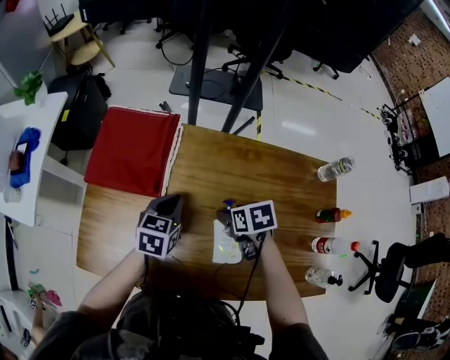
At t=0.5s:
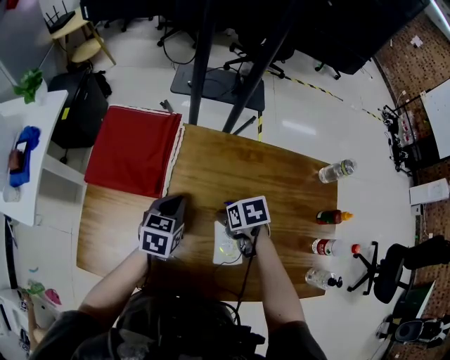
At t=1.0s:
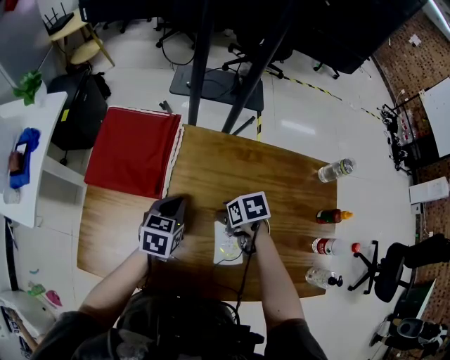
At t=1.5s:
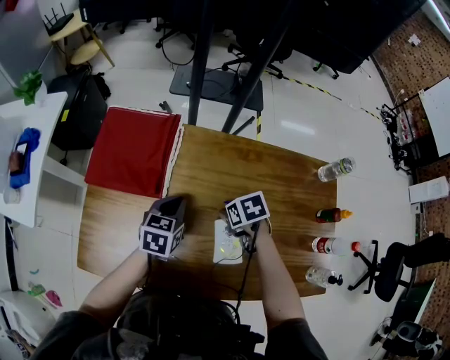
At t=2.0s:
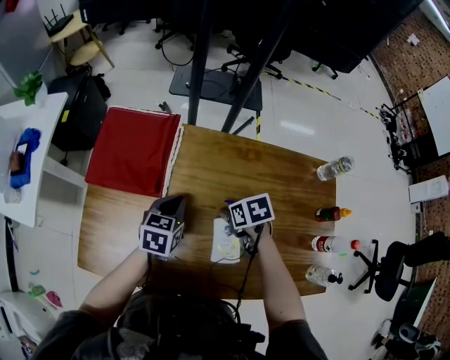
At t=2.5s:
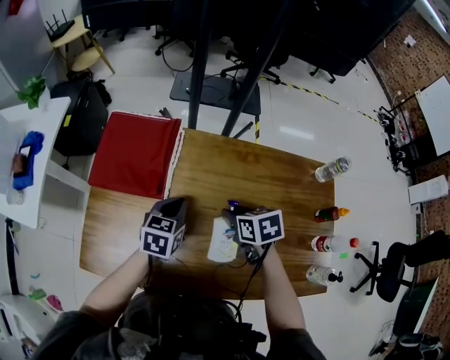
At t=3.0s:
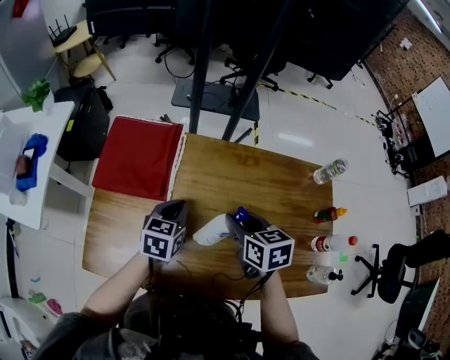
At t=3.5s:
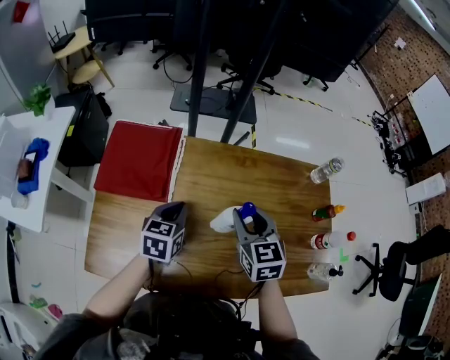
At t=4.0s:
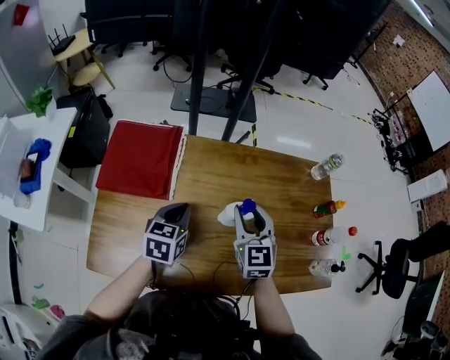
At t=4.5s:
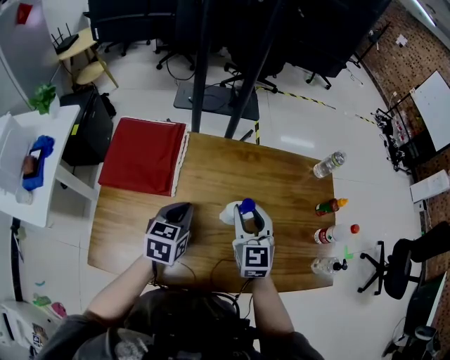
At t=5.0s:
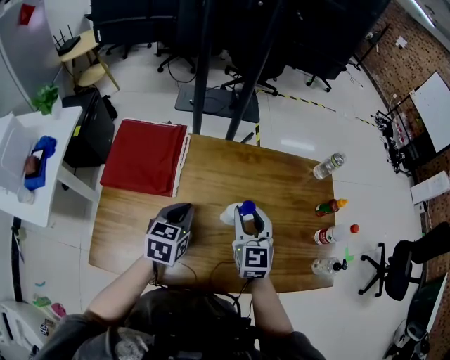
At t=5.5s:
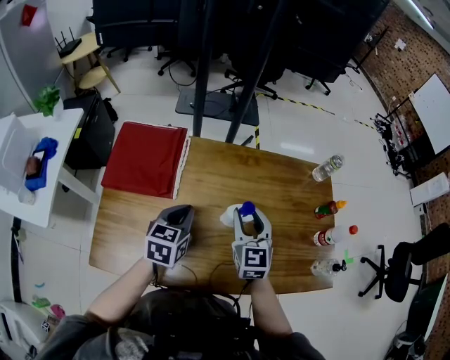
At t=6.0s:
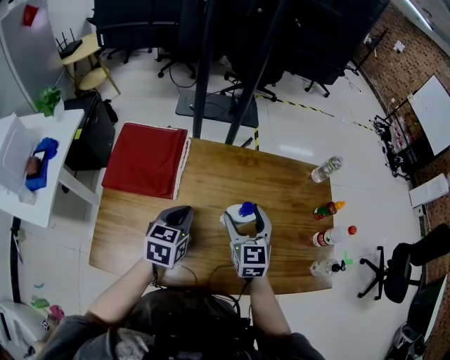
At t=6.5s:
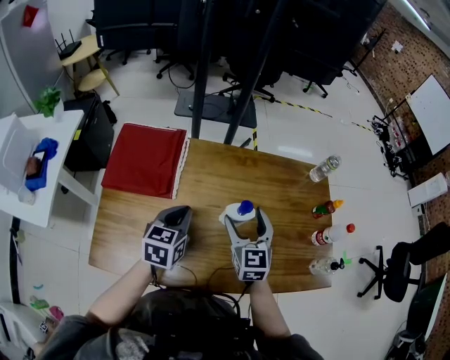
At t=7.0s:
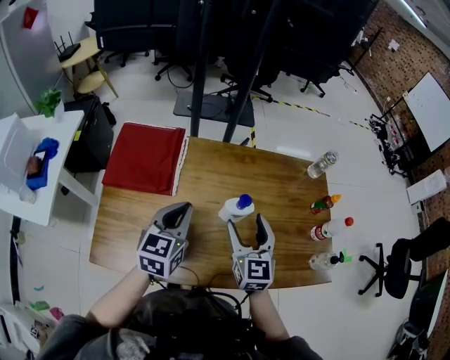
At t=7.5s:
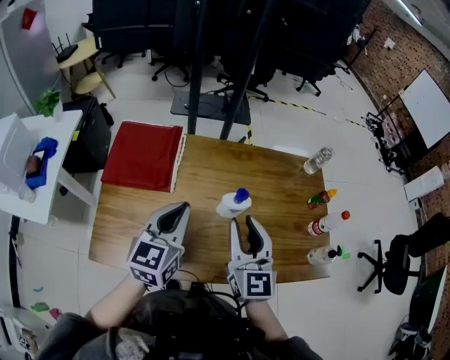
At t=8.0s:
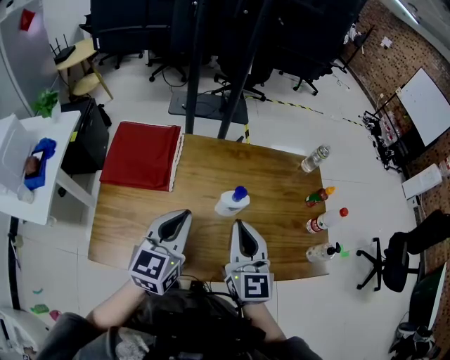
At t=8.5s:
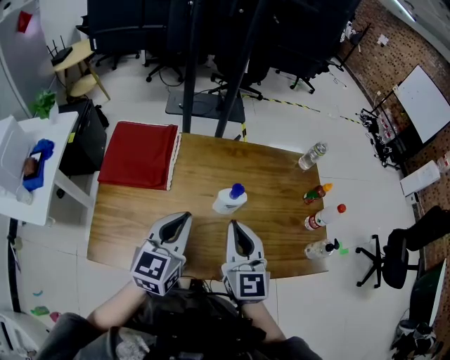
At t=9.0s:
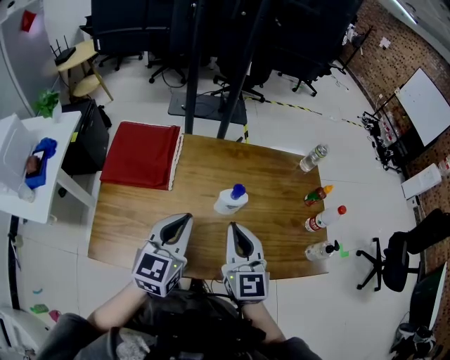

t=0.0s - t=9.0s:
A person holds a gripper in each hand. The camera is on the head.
t=0.0s - t=2.0s: The right gripper closes up.
t=2.0s - t=4.5s: The left gripper moves roughly 10 cm, while the right gripper heads upward, covering approximately 15 cm, and tilts its fingers about 50 degrees upward.
t=4.5s - t=7.0s: The right gripper shifts approximately 10 cm backward, and opens up. Meanwhile the left gripper goes approximately 10 cm upward and backward.
t=7.0s - t=9.0s: The left gripper shifts some 10 cm backward. The right gripper goes roughly 10 cm backward and upward, and closes.

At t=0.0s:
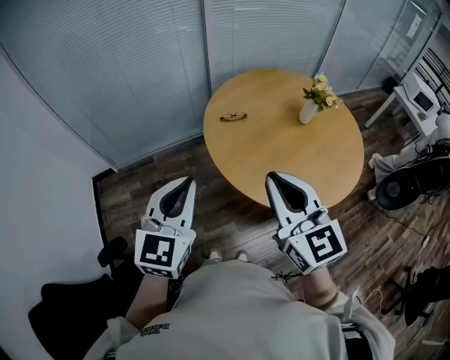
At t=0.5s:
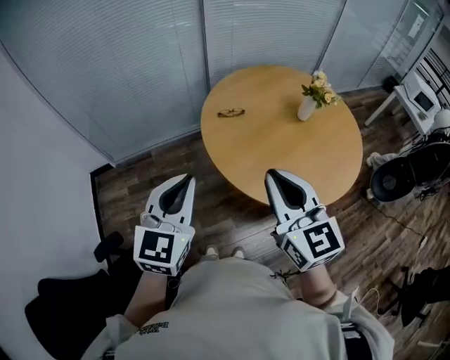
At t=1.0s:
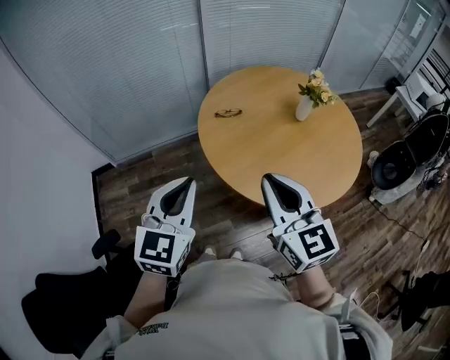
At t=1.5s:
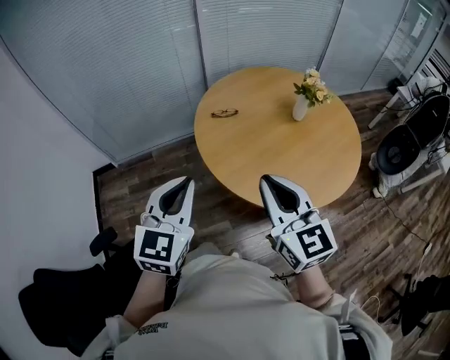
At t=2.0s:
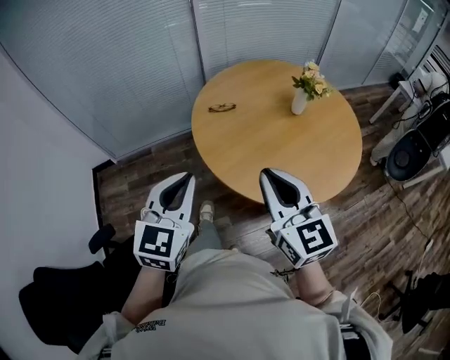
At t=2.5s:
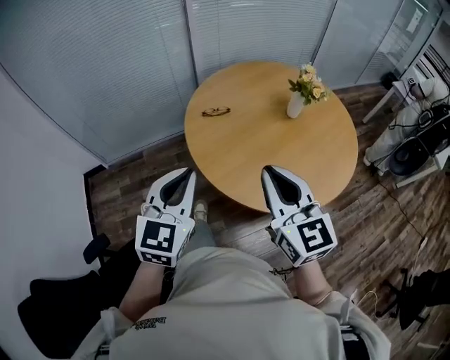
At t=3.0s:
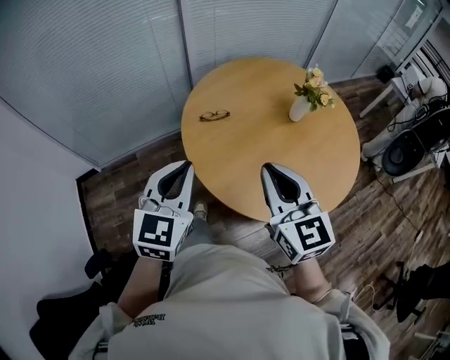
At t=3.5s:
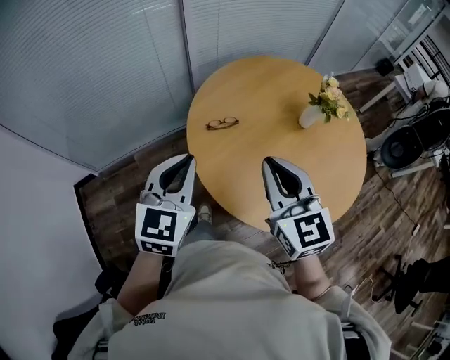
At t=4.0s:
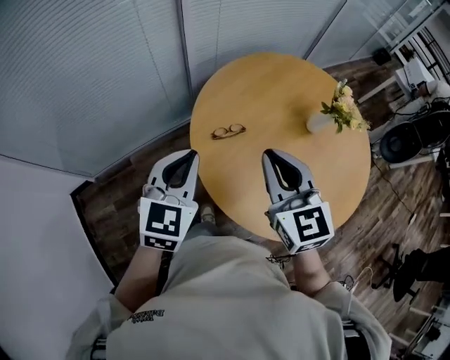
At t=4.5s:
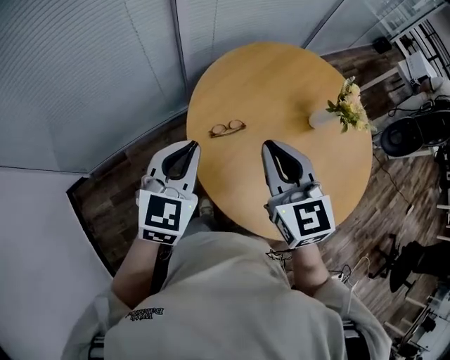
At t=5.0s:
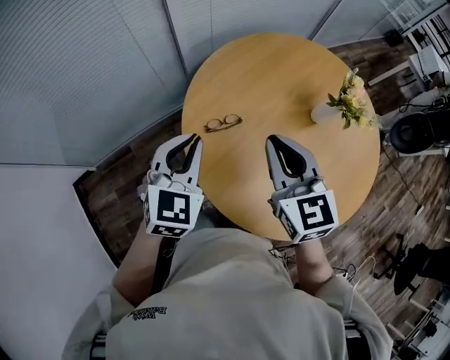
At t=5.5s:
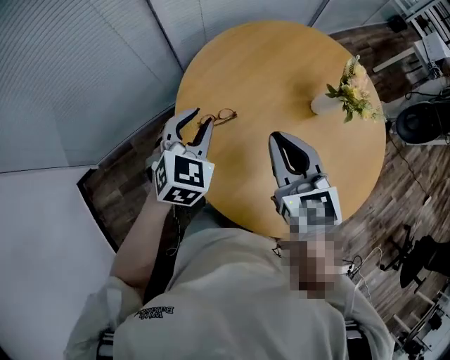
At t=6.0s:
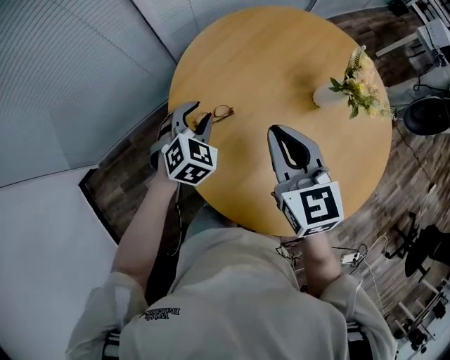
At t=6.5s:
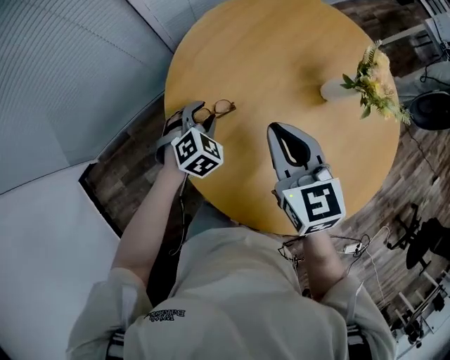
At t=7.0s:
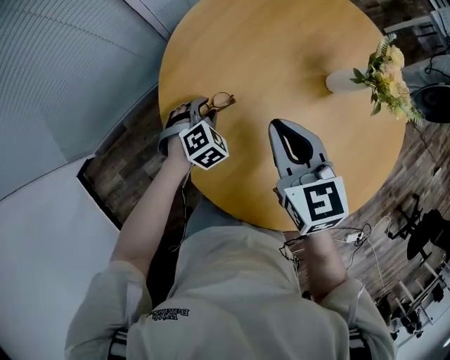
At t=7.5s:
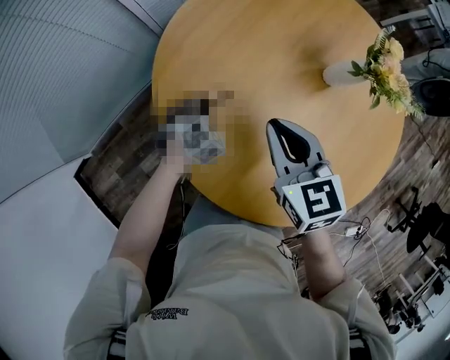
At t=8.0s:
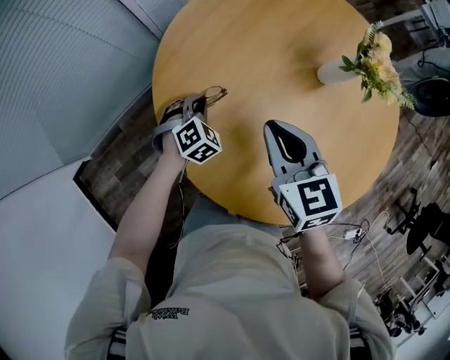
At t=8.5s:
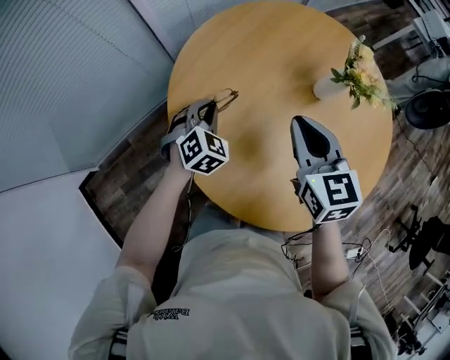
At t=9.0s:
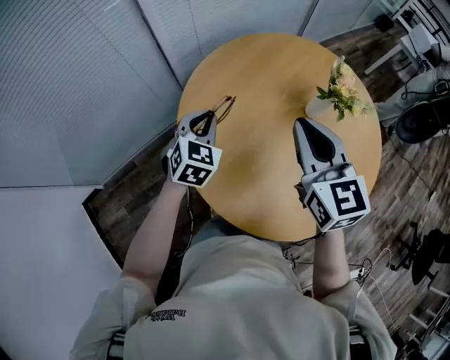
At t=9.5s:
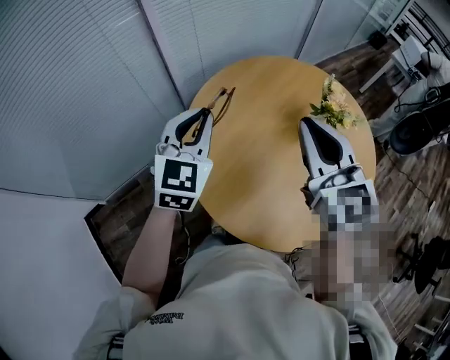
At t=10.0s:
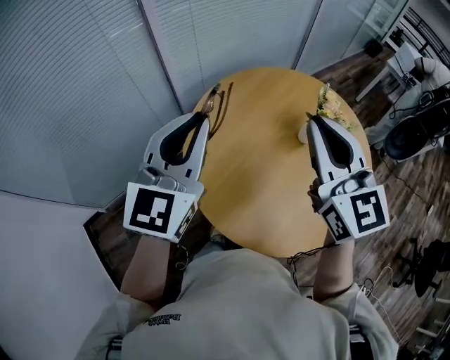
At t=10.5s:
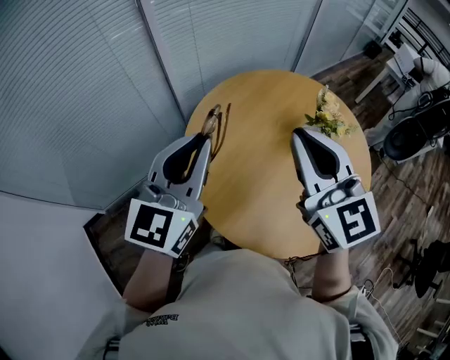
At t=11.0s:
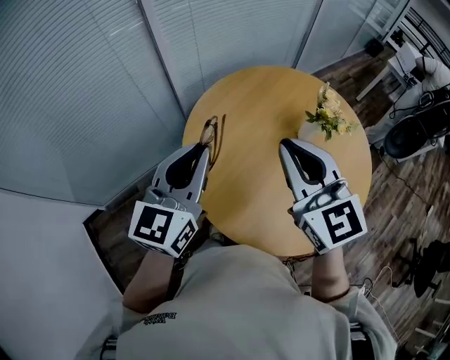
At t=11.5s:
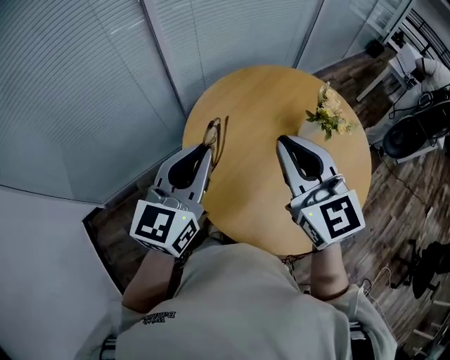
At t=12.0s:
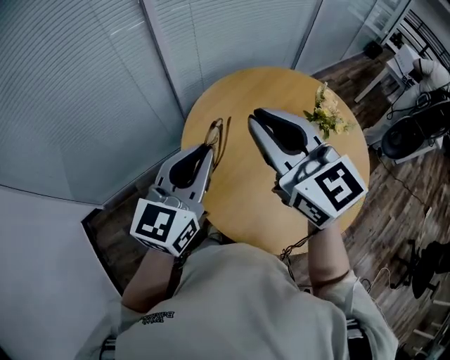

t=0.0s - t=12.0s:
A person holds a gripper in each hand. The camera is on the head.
t=0.0s - t=2.0s: The two grippers go roughly 10 cm to the right.
t=2.0s - t=4.0s: Both grippers move forward, about 35 cm.
t=4.0s - t=6.0s: The right gripper travels forward, downward and to the right by some 15 cm. The left gripper is displaced downward, forward and to the right by approximately 30 cm, swivels about 30 degrees, and opens up.
t=6.0s - t=8.0s: The left gripper heads downward, covering approximately 15 cm, and closes up. Meanwhile the right gripper moves downward, approximately 10 cm.
t=8.0s - t=10.0s: The left gripper moves upward, roughly 50 cm, and points its fingers some 60 degrees further upward. Meanwhile the right gripper travels upward by some 30 cm, and angles its fingers upward, by about 30 degrees.
t=10.0s - t=12.0s: The right gripper shifts about 10 cm to the left, and changes its angle by approximately 20 degrees; the left gripper moves downward, some 5 cm.

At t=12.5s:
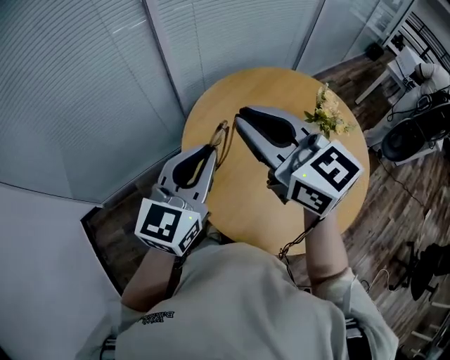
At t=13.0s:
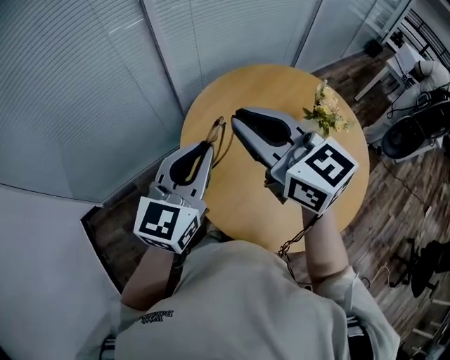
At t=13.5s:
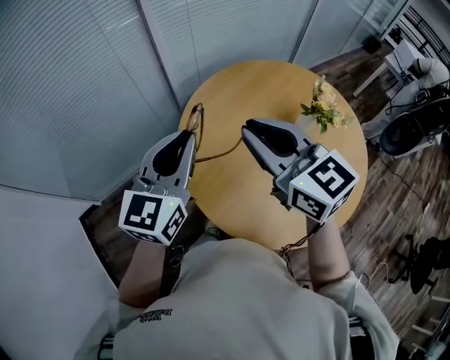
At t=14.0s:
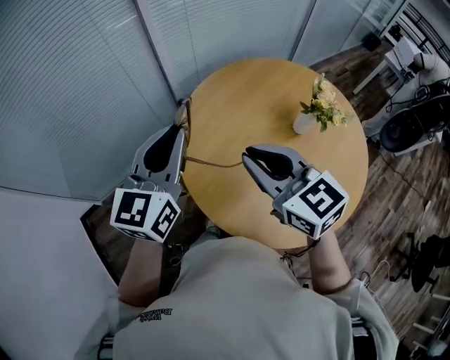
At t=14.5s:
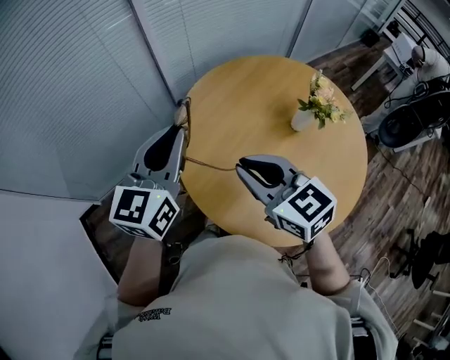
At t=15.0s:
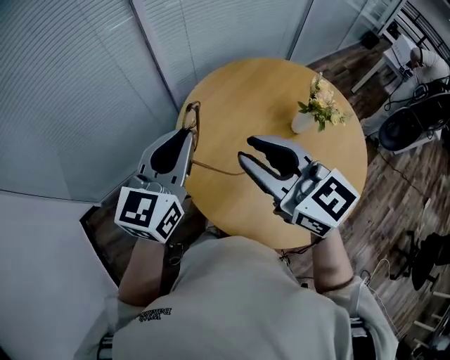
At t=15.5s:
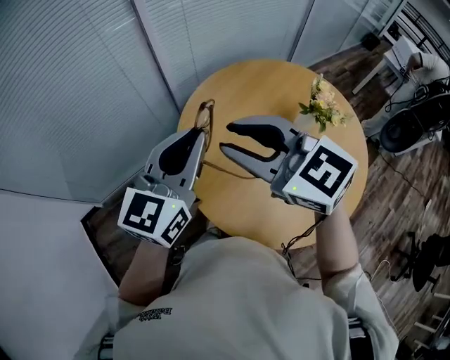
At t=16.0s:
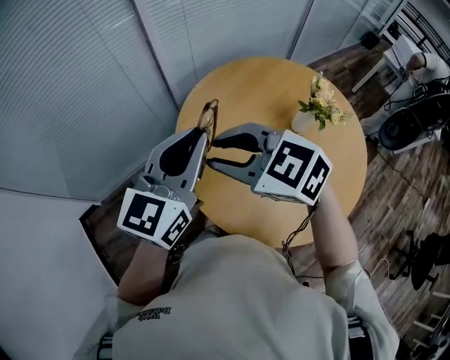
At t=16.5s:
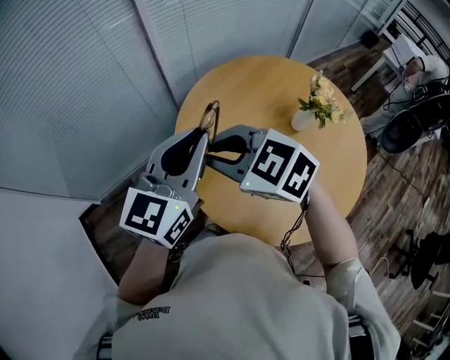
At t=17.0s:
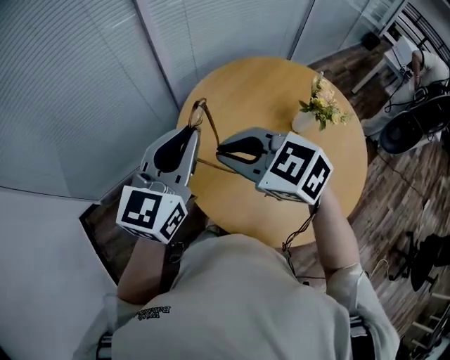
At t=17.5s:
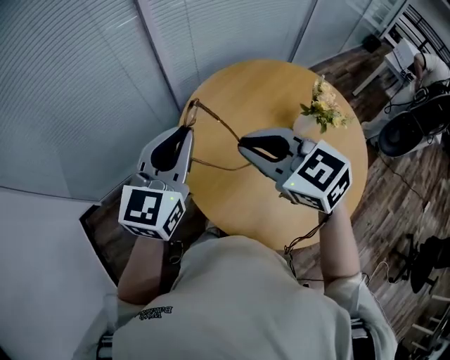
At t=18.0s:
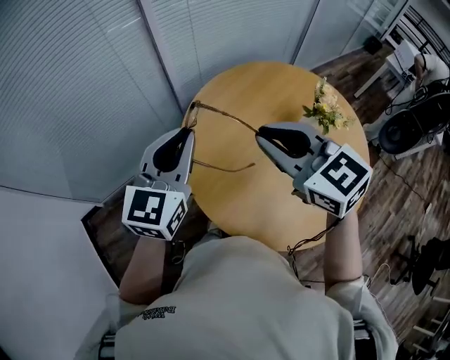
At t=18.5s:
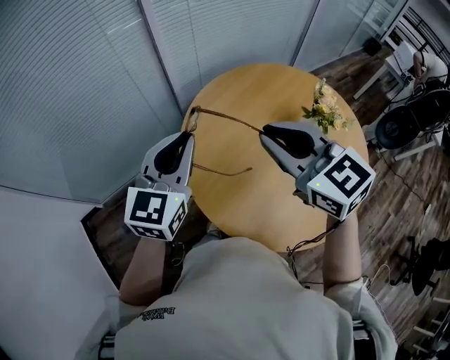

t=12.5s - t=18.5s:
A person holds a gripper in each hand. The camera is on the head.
t=12.5s - t=14.5s: The right gripper moves downward and backward, approximately 15 cm.
t=14.5s - t=16.5s: The left gripper changes place by approximately 5 cm; the right gripper goes about 5 cm to the left, travels upward and back again, approximately 10 cm each way, and swivels some 30 degrees.
t=16.5s - t=18.5s: The left gripper changes place by roughly 5 cm; the right gripper travels to the right and upward by some 15 cm, and rotates some 30 degrees.
